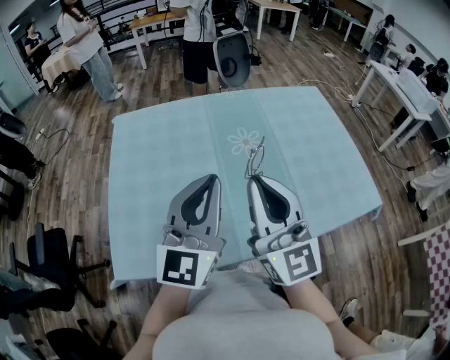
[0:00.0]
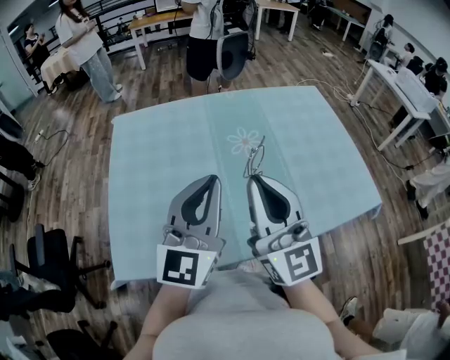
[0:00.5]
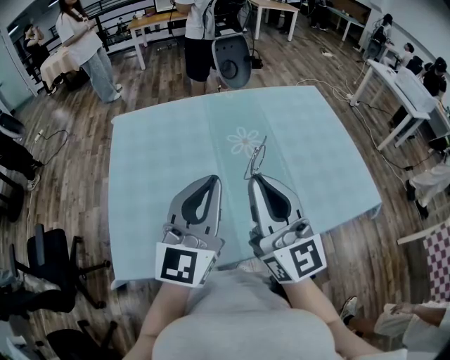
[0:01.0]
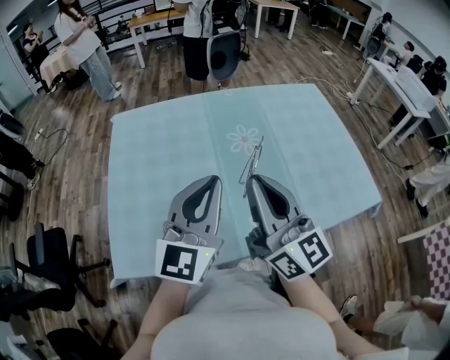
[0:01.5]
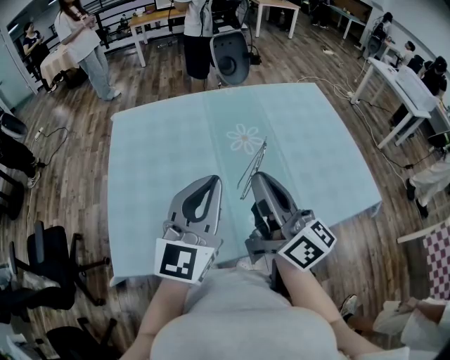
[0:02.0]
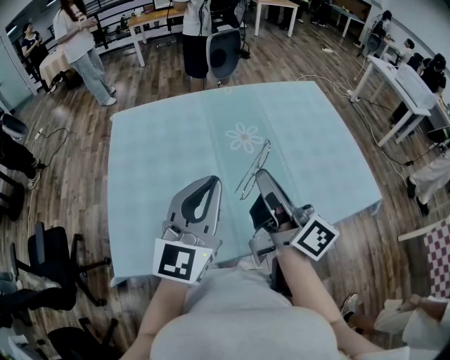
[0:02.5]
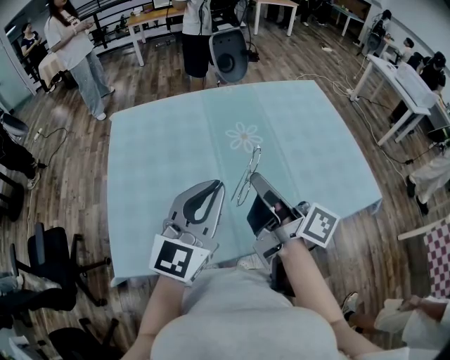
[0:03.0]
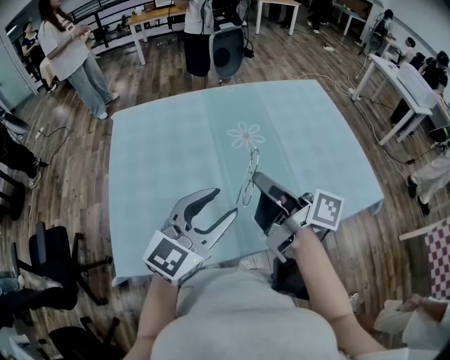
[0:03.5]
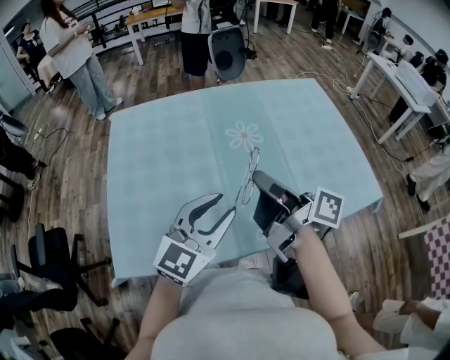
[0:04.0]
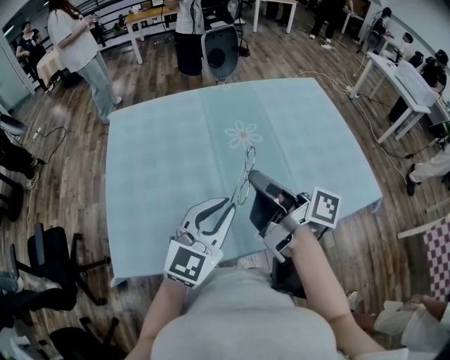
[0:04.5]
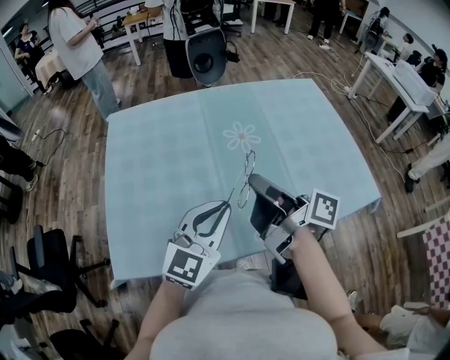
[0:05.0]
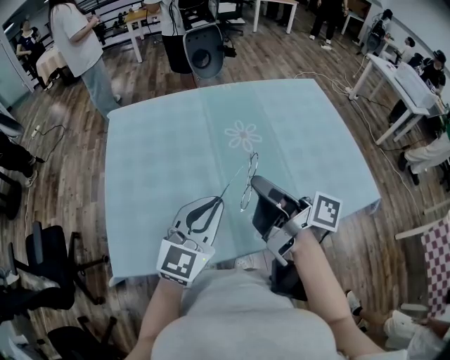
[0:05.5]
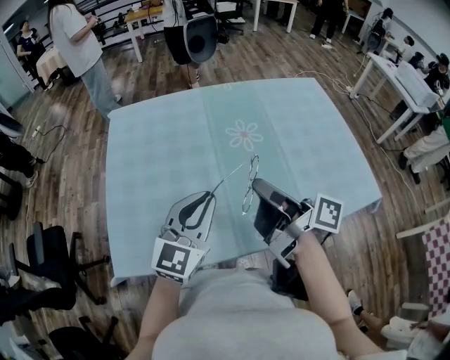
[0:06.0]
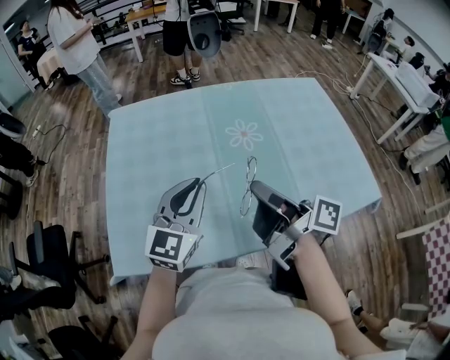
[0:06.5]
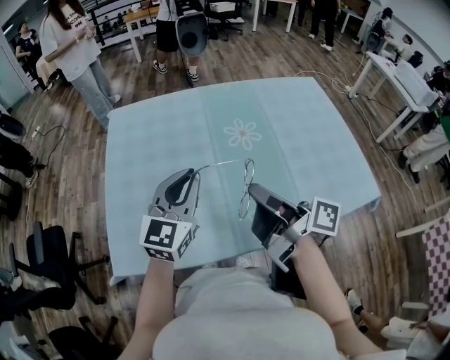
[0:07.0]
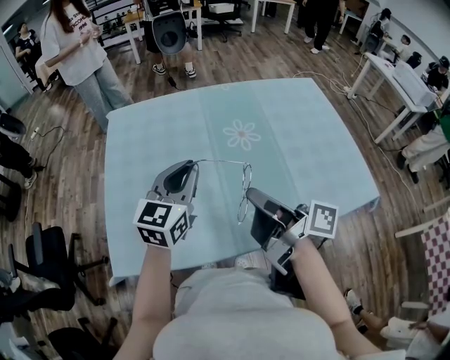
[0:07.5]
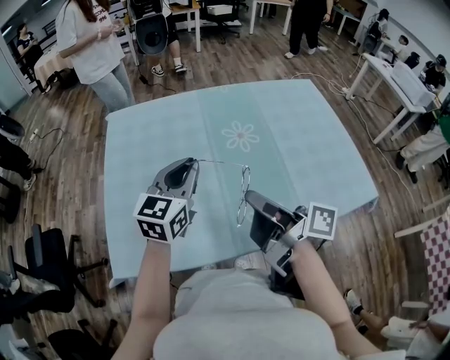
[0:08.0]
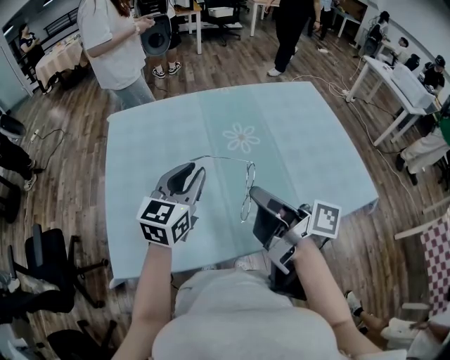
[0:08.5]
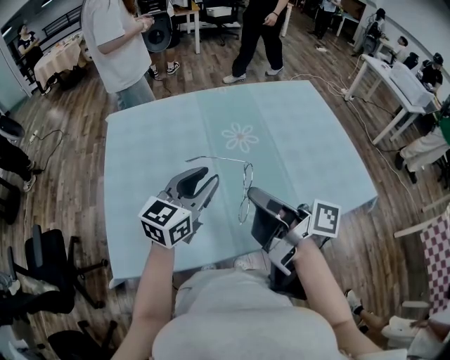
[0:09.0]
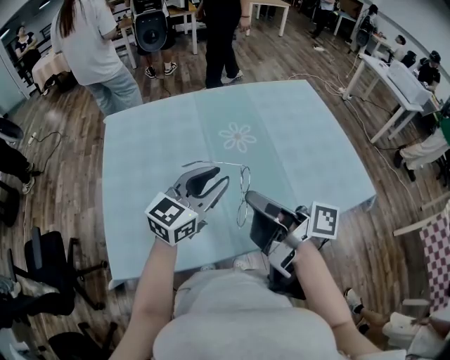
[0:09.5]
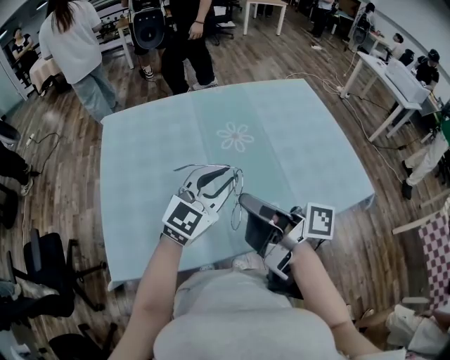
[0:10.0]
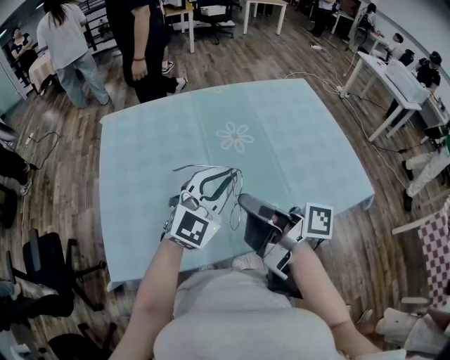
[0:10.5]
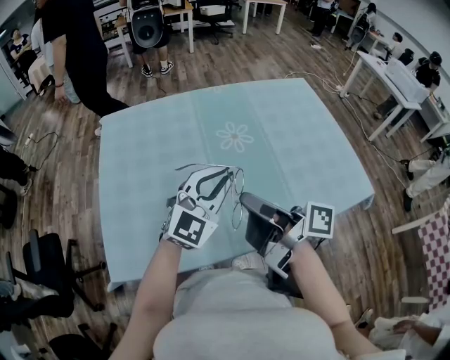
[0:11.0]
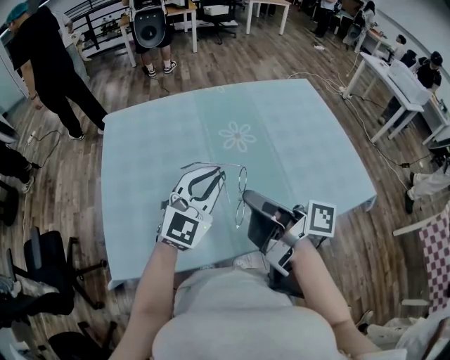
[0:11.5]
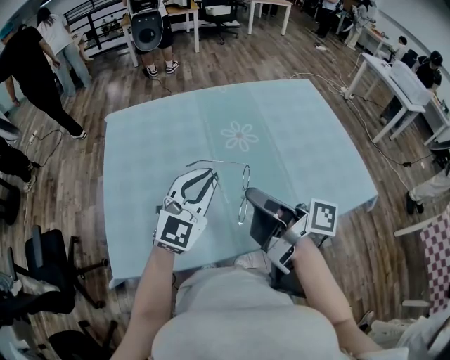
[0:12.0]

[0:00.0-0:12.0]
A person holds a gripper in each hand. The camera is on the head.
0:00.0 to 0:02.0: The right gripper rotates around the line of its fingers by roughly 40 degrees, clockwise from behind.
0:02.0 to 0:04.0: Both grippers travel together downward, about 5 cm. The right gripper rolls clockwise, seen from behind, by roughly 40 degrees, while the left gripper swivels approximately 20 degrees, and opens up.
0:04.0 to 0:06.0: The left gripper closes its fingers.
0:06.0 to 0:08.0: The left gripper is displaced forward by approximately 10 cm.
0:08.0 to 0:10.0: The left gripper is displaced to the right by about 10 cm, and rotates some 30 degrees.
0:10.0 to 0:12.0: The left gripper travels to the left by about 5 cm.

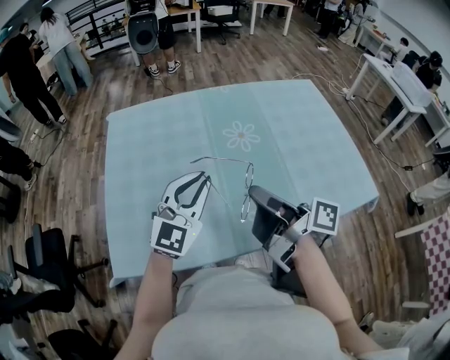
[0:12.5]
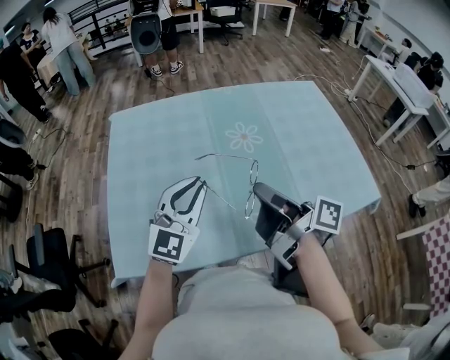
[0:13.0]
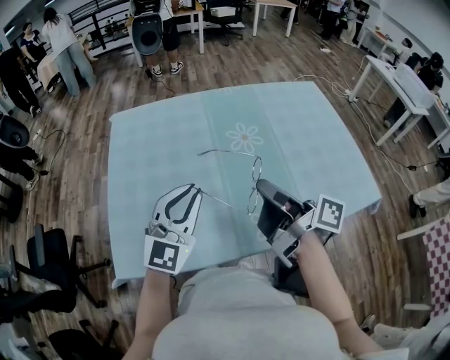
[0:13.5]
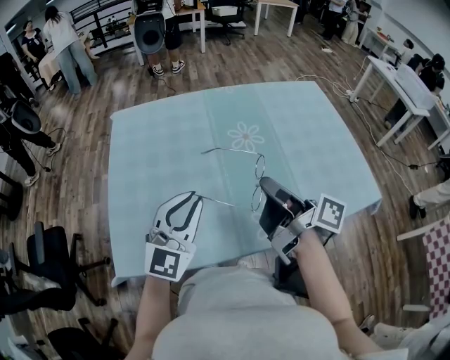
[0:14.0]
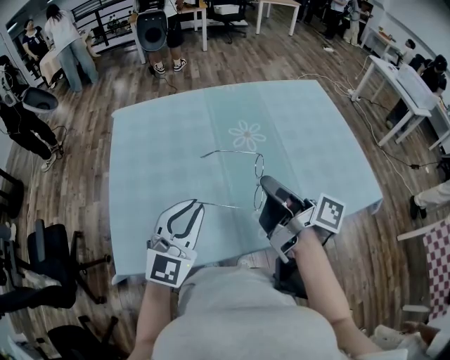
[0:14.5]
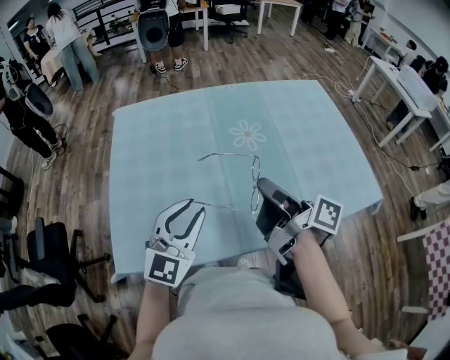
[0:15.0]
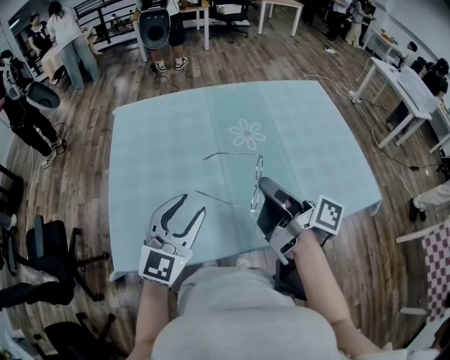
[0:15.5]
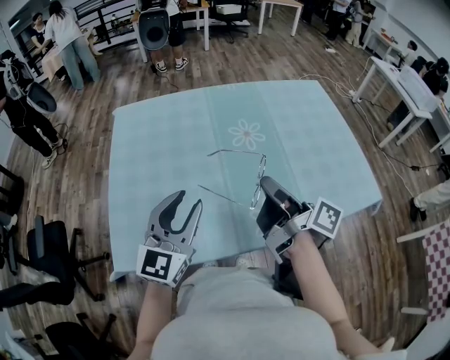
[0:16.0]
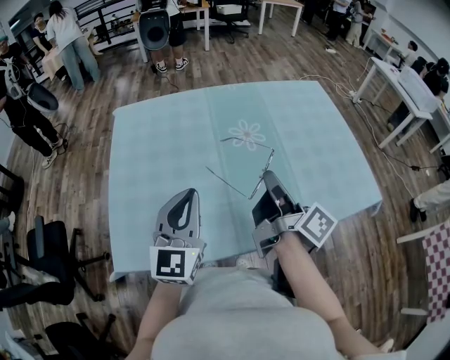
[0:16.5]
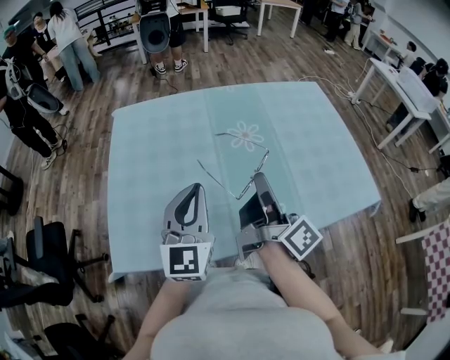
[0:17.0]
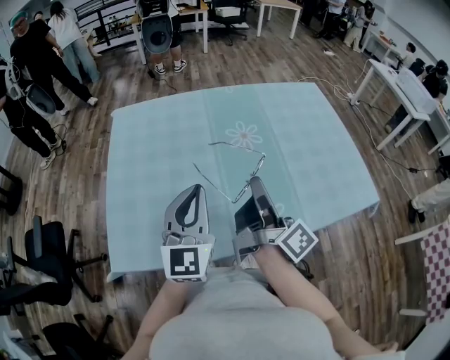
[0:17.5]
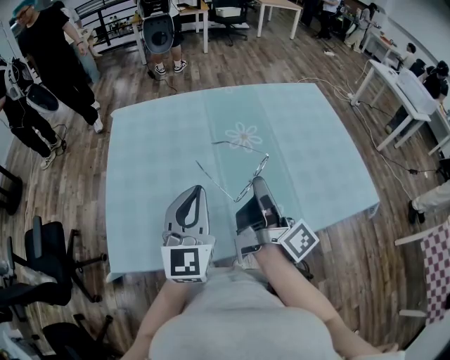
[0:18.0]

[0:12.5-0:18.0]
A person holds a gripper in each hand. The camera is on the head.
0:12.5 to 0:14.5: The left gripper shifts about 5 cm backward.
0:14.5 to 0:16.0: The left gripper opens up.
0:16.0 to 0:18.0: The right gripper turns by approximately 20 degrees. The left gripper closes.

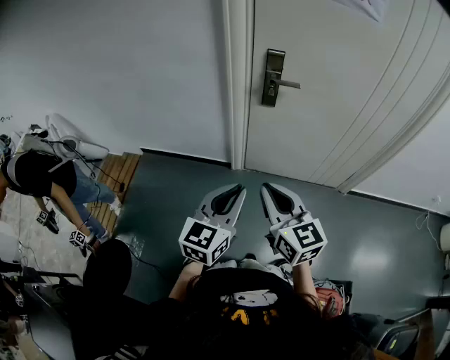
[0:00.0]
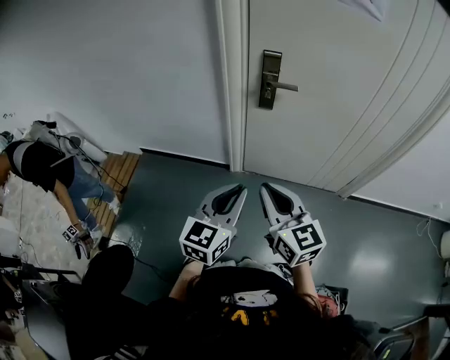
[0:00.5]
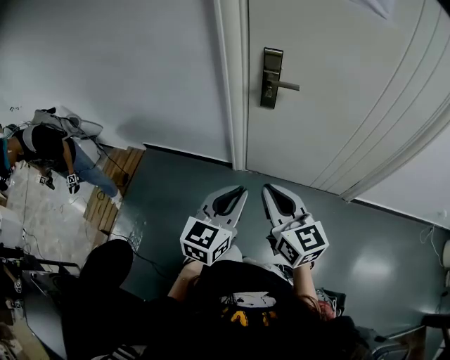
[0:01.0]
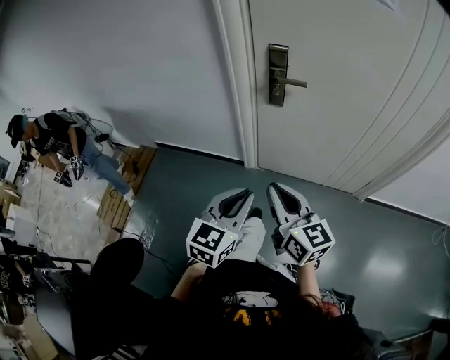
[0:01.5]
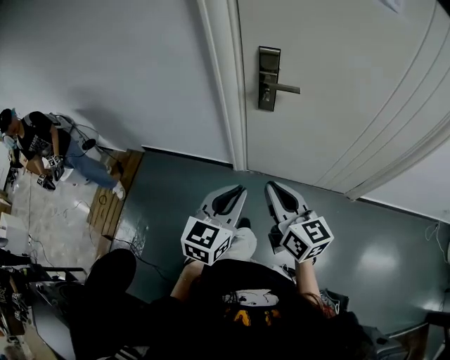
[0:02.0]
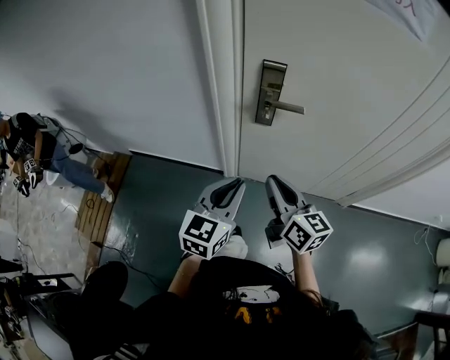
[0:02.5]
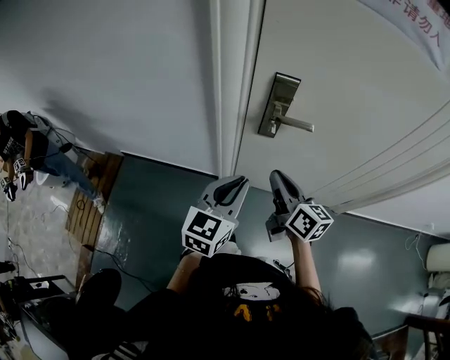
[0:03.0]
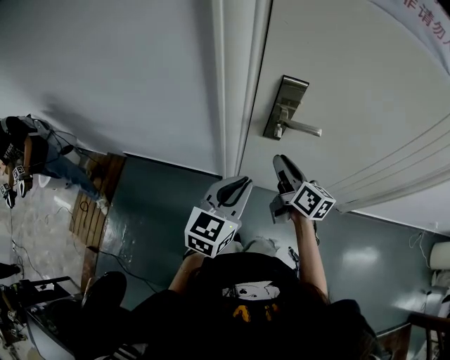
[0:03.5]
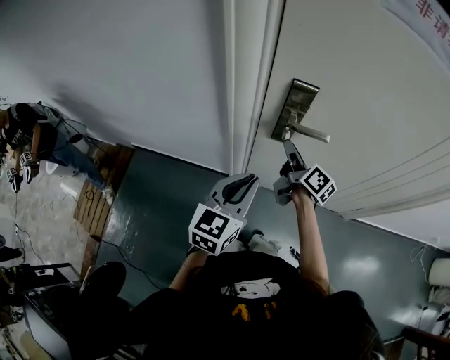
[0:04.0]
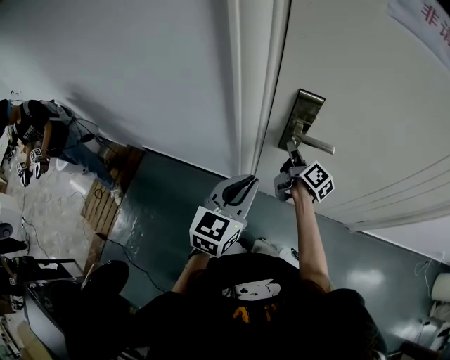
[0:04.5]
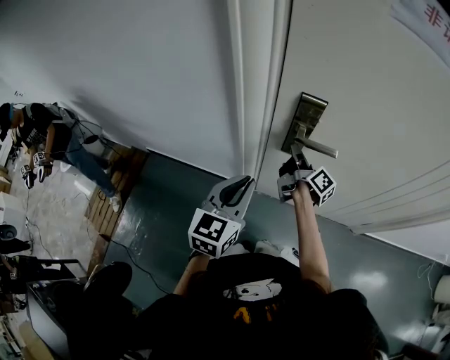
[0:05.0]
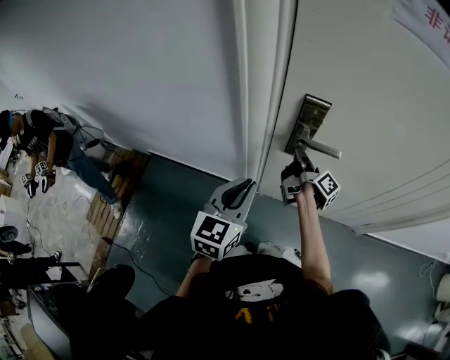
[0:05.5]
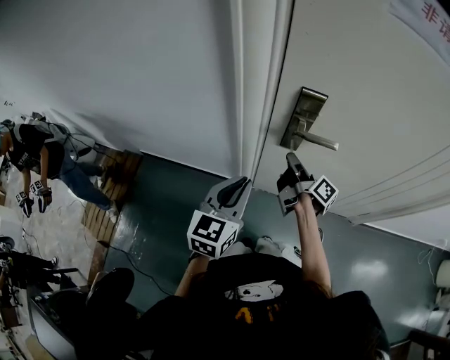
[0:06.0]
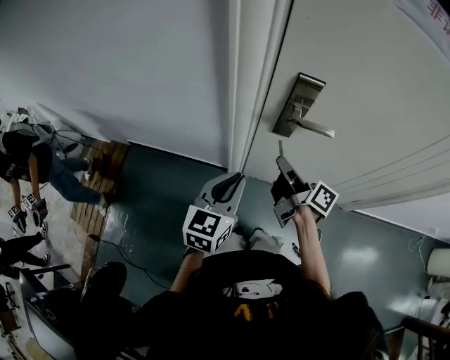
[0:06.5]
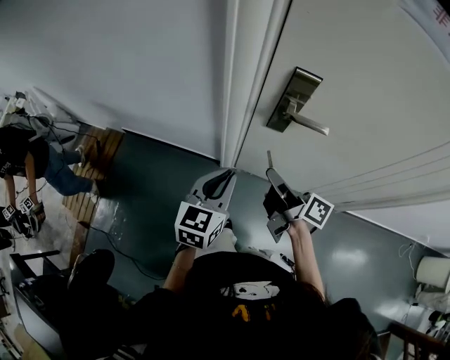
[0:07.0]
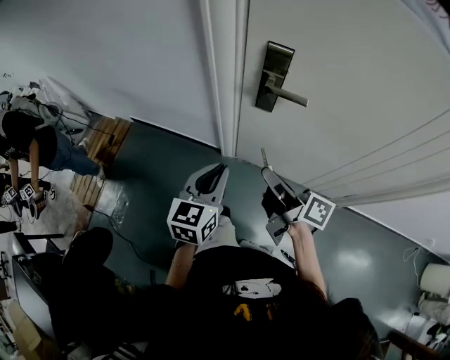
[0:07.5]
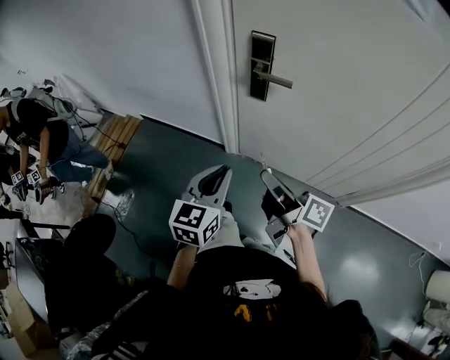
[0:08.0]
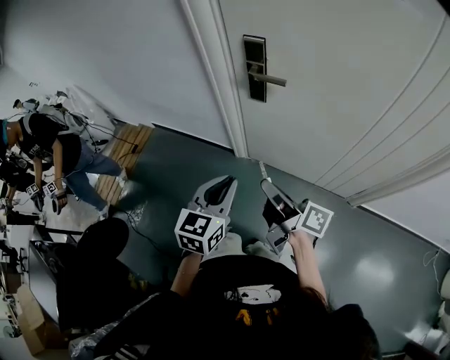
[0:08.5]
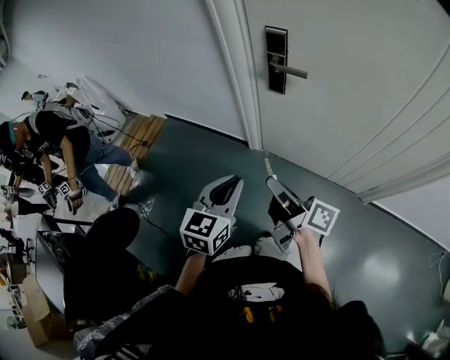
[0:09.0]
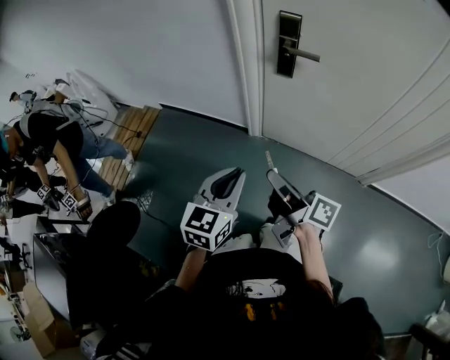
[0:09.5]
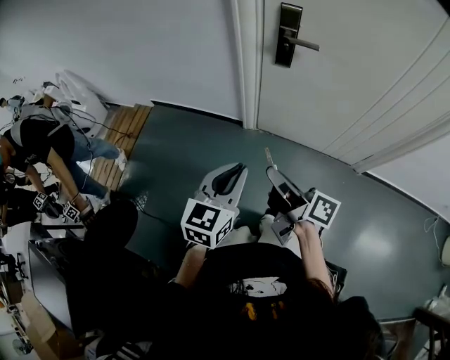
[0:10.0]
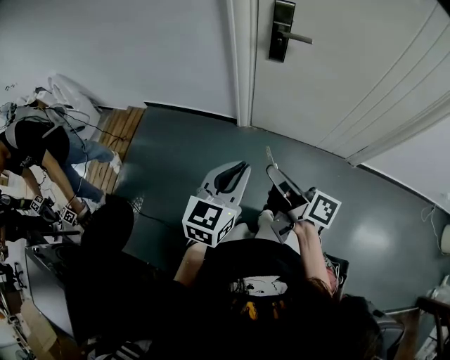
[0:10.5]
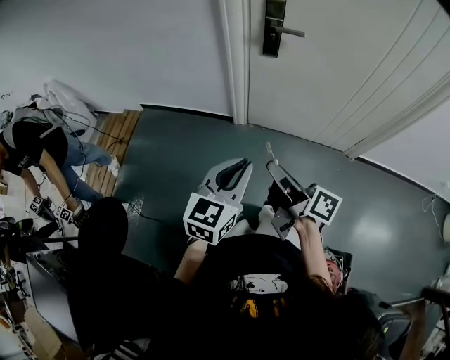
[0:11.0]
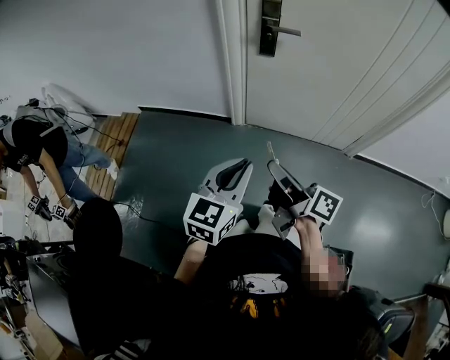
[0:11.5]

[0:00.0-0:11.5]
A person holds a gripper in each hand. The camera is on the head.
0:00.0 to 0:02.0: Both grippers move forward and to the right, approximately 15 cm.
0:02.0 to 0:04.0: The left gripper is displaced forward by approximately 20 cm. The right gripper goes some 35 cm forward, turns by roughly 40 degrees, and opens.
0:04.0 to 0:06.0: The right gripper turns by roughly 20 degrees, and closes its fingers.
0:06.0 to 0:07.5: The left gripper heads backward, covering some 10 cm; the right gripper is displaced backward by some 20 cm, and swivels approximately 30 degrees.
0:07.5 to 0:09.5: Both grippers travel together backward, some 15 cm.
0:09.5 to 0:11.5: The right gripper heads backward and to the left, covering roughly 10 cm. The left gripper travels backward by some 10 cm.
